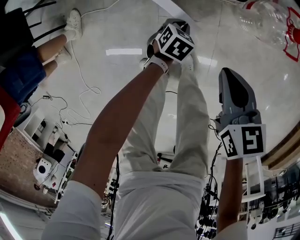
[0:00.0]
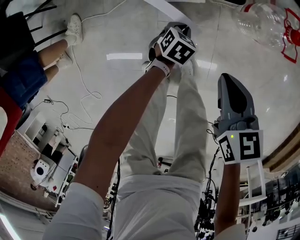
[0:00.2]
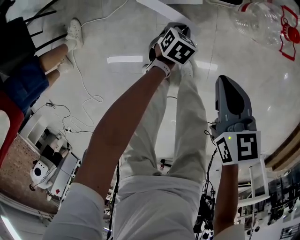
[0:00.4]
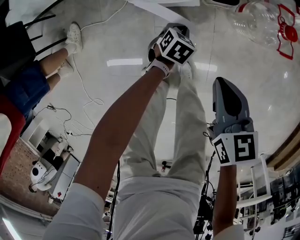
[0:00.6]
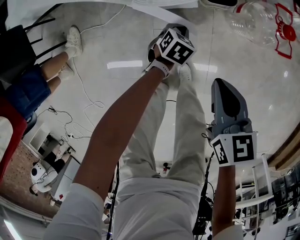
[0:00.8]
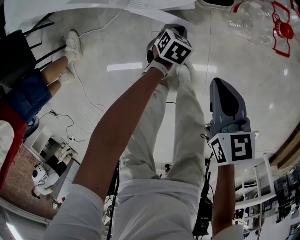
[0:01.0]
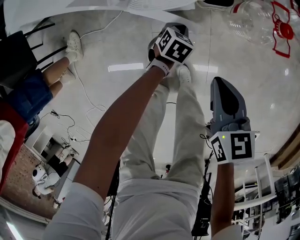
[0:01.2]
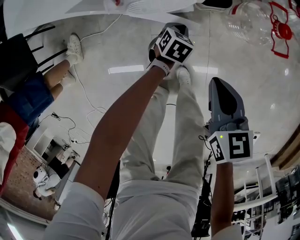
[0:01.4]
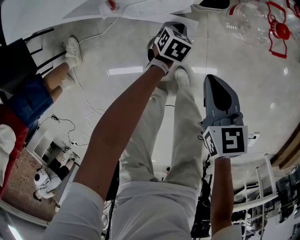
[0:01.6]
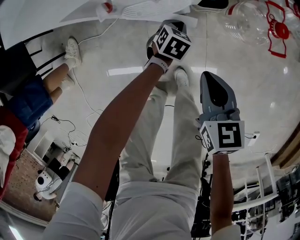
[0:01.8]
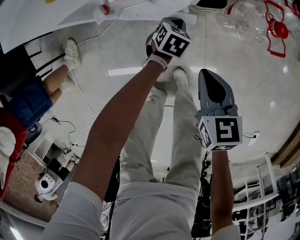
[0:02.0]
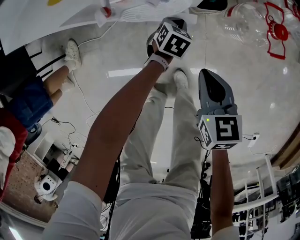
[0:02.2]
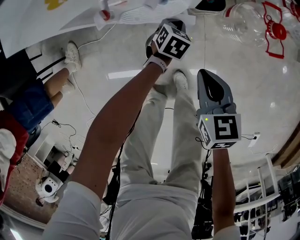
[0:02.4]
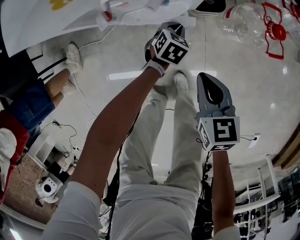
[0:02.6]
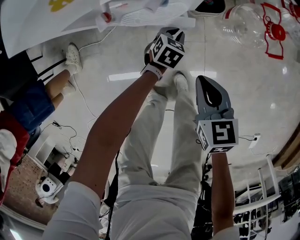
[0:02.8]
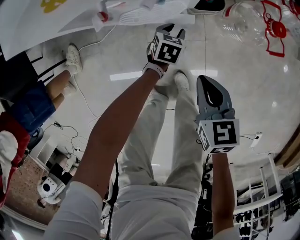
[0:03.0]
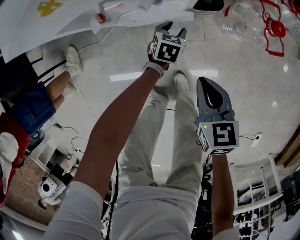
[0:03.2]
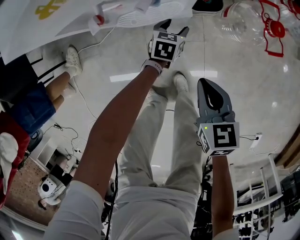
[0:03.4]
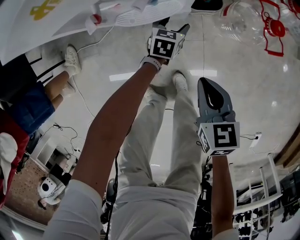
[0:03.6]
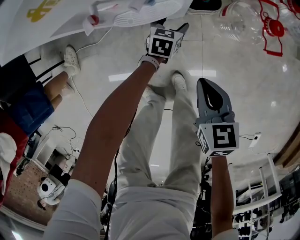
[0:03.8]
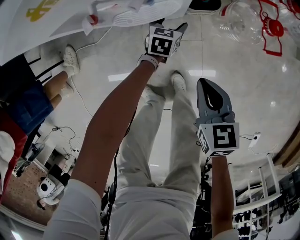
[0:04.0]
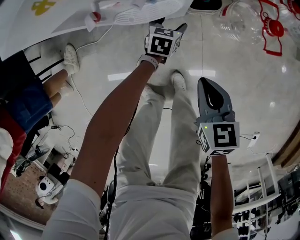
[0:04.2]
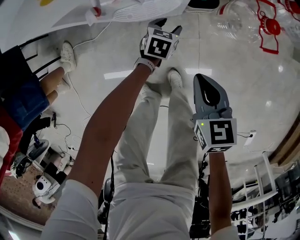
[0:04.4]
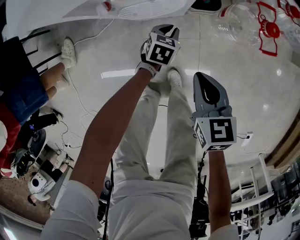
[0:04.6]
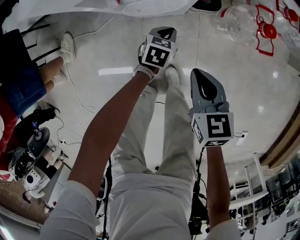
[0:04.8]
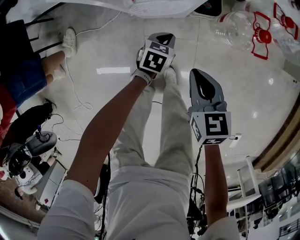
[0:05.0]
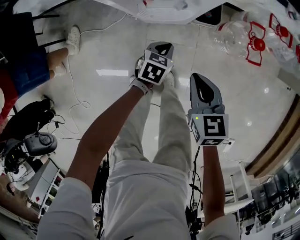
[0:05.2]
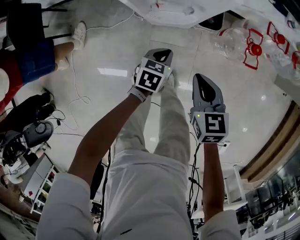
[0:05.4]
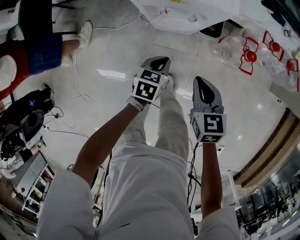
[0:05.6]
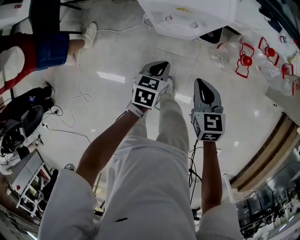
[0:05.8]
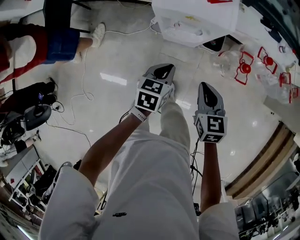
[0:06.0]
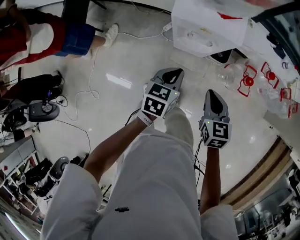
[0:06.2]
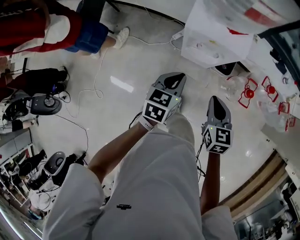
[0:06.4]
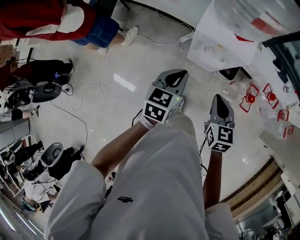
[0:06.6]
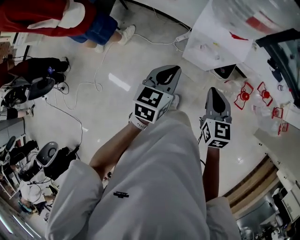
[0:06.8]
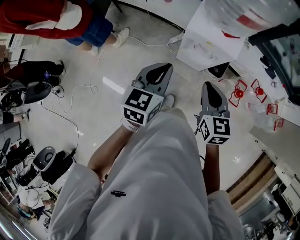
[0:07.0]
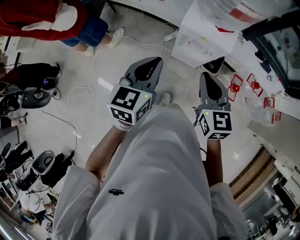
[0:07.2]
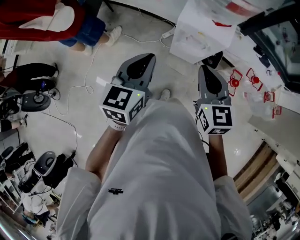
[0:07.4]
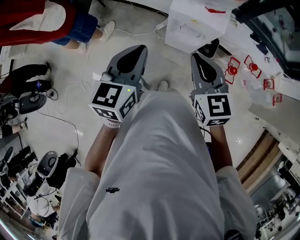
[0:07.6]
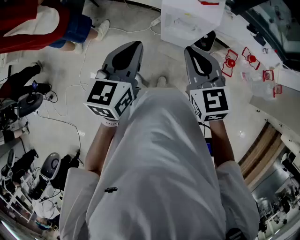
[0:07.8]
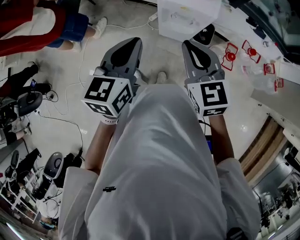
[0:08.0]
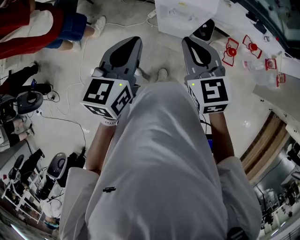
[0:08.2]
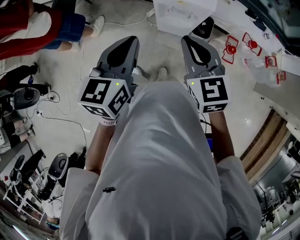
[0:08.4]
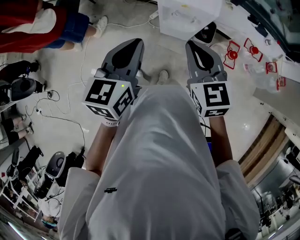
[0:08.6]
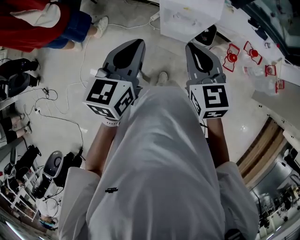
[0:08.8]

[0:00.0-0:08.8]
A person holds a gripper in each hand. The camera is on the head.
0:00.0 to 0:01.4: The left gripper shifts roughly 5 cm forward.
0:01.4 to 0:03.0: The left gripper opens its fingers.
0:03.0 to 0:04.4: There are only small adjustments of the grippers.
0:04.4 to 0:05.8: The left gripper heads upward and backward, covering roughly 35 cm, swivels roughly 20 degrees, and closes. Meanwhile the right gripper goes approximately 20 cm upward.
0:05.8 to 0:07.4: The two grippers go about 30 cm upward. The right gripper turns by roughly 30 degrees; the left gripper turns by approximately 30 degrees.
0:07.4 to 0:08.8: The grippers stay close to where they were, moving slightly.

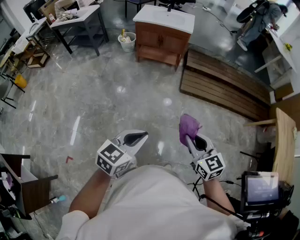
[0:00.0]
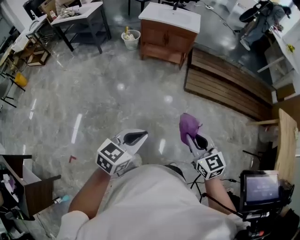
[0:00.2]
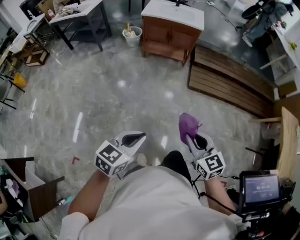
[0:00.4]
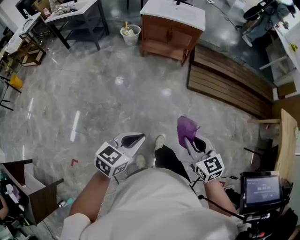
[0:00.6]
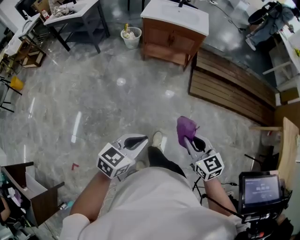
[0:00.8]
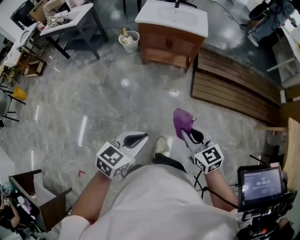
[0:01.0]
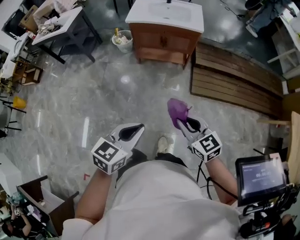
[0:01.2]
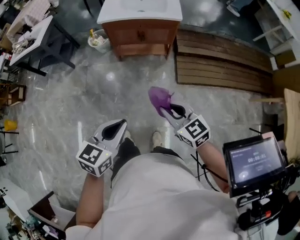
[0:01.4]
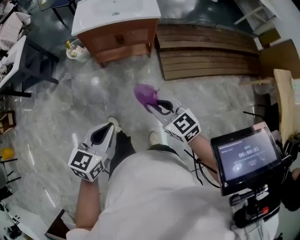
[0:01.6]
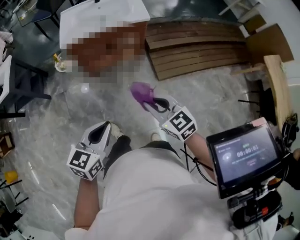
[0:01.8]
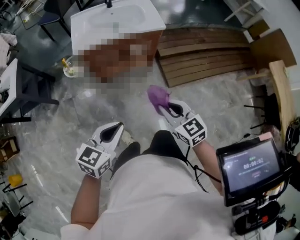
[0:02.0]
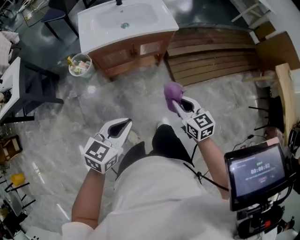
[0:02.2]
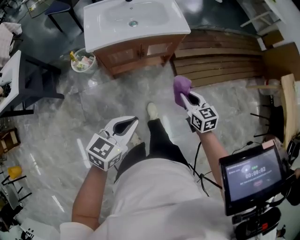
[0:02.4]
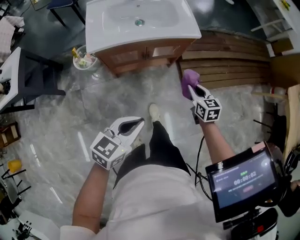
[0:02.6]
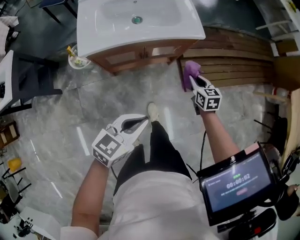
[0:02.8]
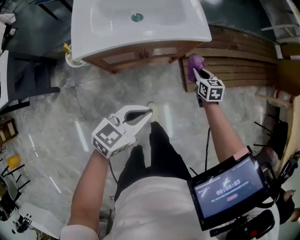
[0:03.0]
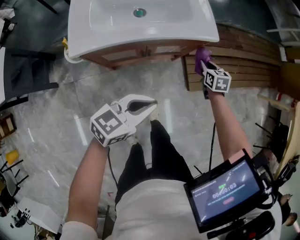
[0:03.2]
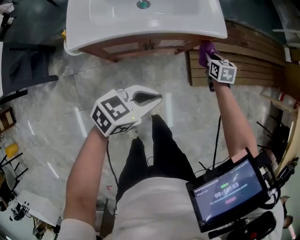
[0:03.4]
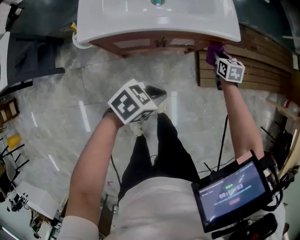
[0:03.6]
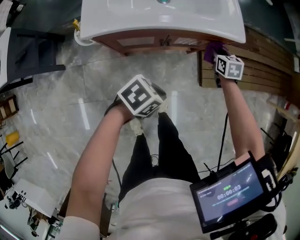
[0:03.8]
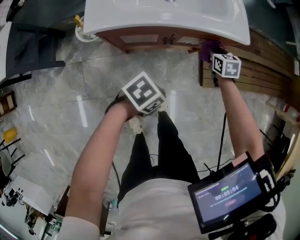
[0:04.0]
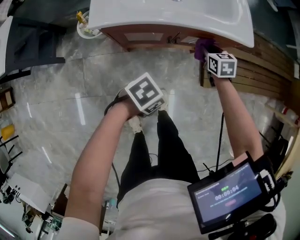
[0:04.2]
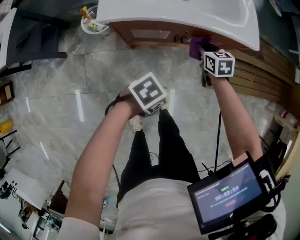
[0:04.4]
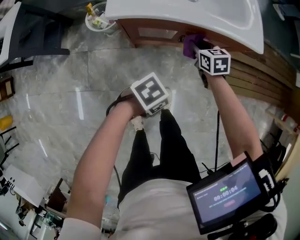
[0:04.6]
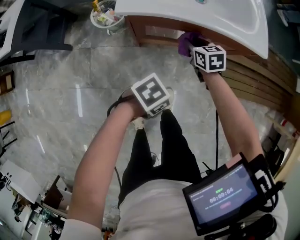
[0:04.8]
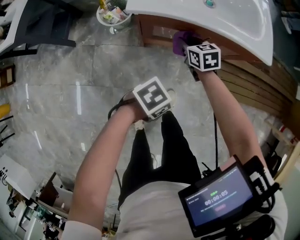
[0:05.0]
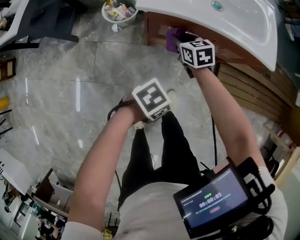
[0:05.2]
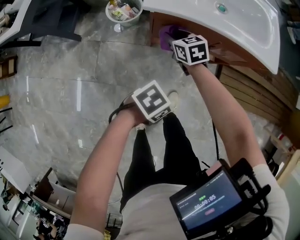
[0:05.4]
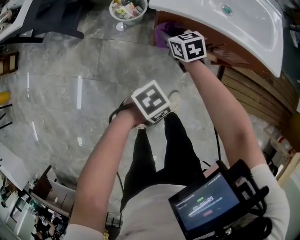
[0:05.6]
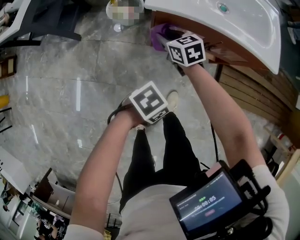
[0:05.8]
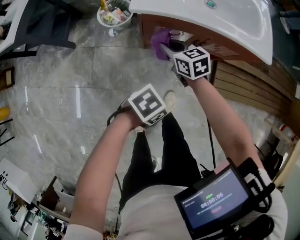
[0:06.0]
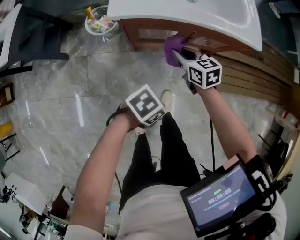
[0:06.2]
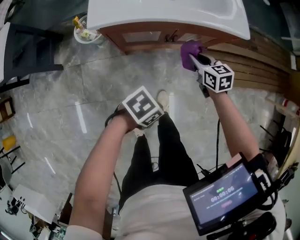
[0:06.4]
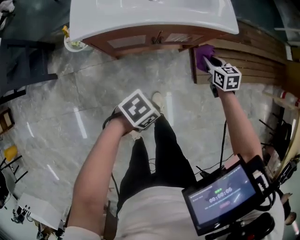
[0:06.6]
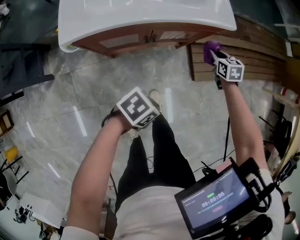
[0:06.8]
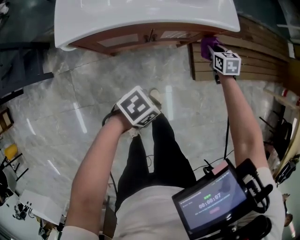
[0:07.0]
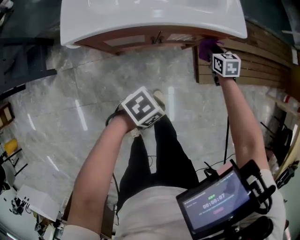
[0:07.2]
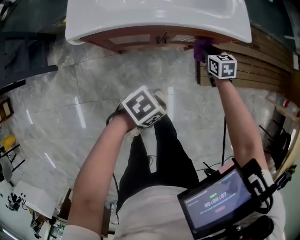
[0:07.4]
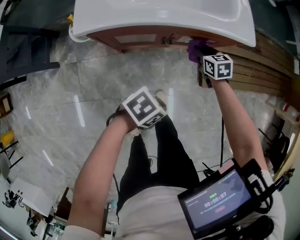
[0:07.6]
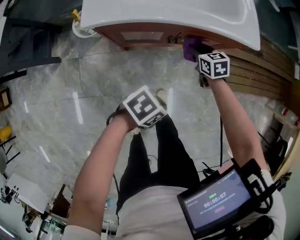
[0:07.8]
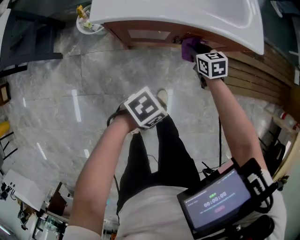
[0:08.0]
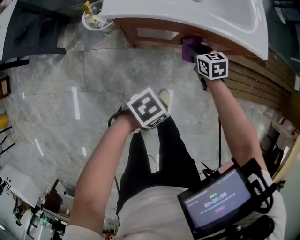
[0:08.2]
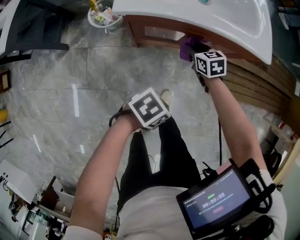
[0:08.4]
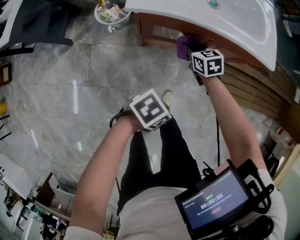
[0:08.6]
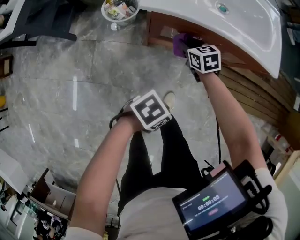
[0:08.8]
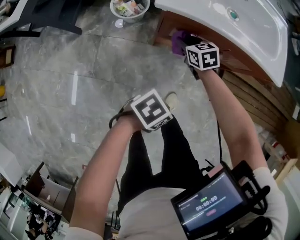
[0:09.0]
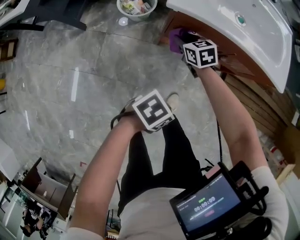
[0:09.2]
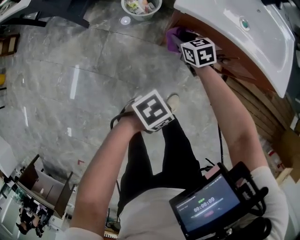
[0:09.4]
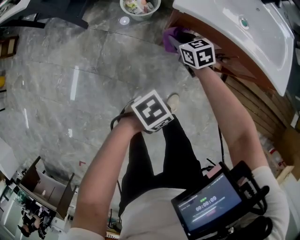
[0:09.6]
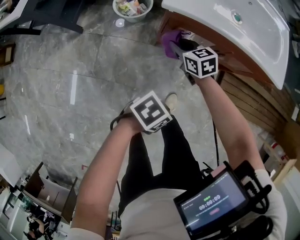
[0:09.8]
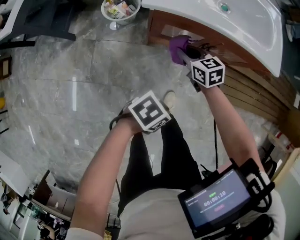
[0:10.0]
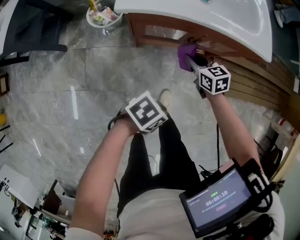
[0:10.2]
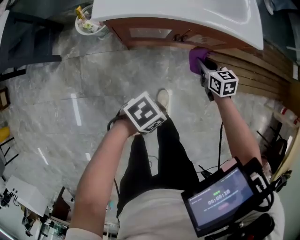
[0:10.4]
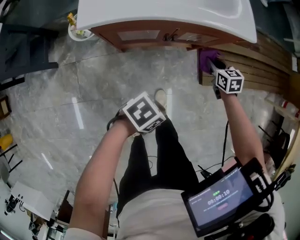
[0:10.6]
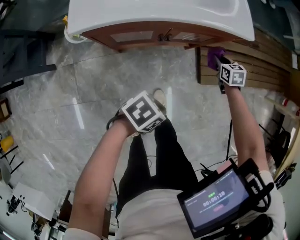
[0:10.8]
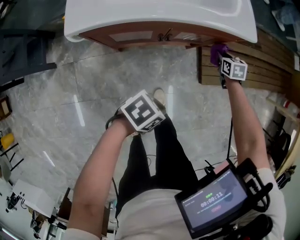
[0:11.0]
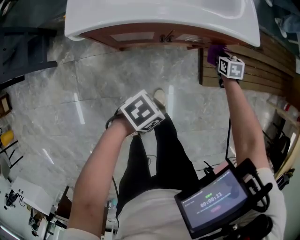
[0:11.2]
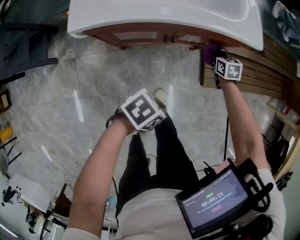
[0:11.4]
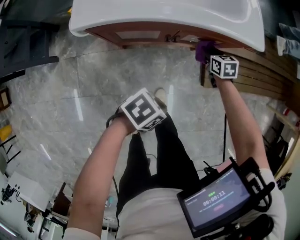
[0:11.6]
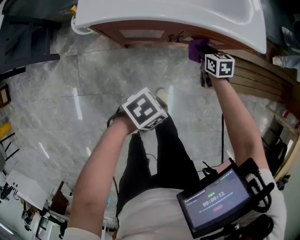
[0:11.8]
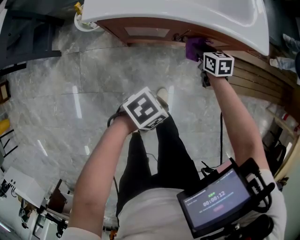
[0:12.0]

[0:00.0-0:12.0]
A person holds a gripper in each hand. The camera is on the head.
0:00.0 to 0:01.6: The pair of grippers is taken forward, about 50 cm.
0:01.6 to 0:03.0: Both grippers are carried approximately 50 cm. The right gripper turns by approximately 40 degrees. The left gripper rotates roughly 30 degrees.
0:03.0 to 0:04.4: The left gripper is displaced downward by about 20 cm, and swivels roughly 50 degrees; the right gripper moves about 20 cm.
0:04.4 to 0:06.0: The right gripper ends up approximately 30 cm from where it was, and rotates approximately 20 degrees. Meanwhile the left gripper changes place by roughly 10 cm.
0:06.0 to 0:07.6: The left gripper moves some 15 cm, while the right gripper changes place by approximately 35 cm, and rotates roughly 20 degrees.
0:07.6 to 0:09.0: The left gripper changes place by some 15 cm, while the right gripper ends up roughly 30 cm from where it was, and swivels roughly 20 degrees.
0:09.0 to 0:10.4: The left gripper moves about 10 cm; the right gripper ends up some 25 cm from where it was, and turns by about 20 degrees.

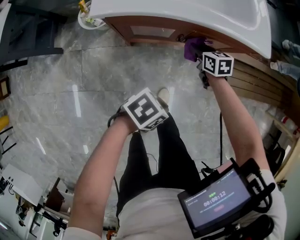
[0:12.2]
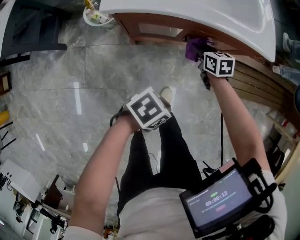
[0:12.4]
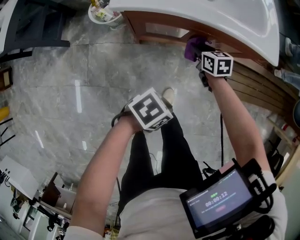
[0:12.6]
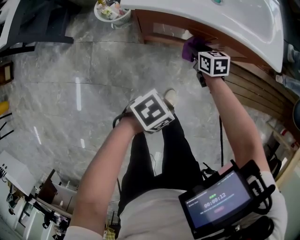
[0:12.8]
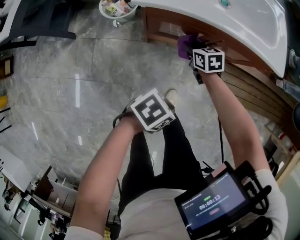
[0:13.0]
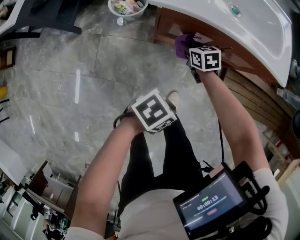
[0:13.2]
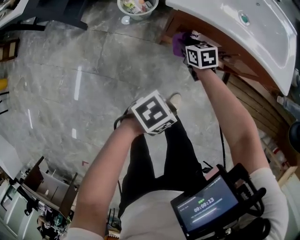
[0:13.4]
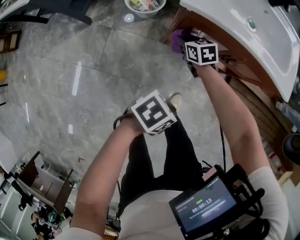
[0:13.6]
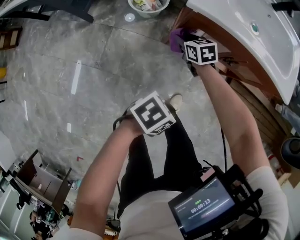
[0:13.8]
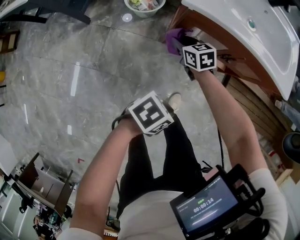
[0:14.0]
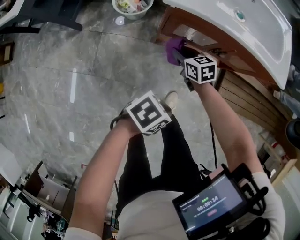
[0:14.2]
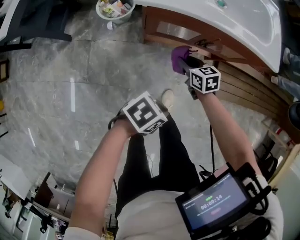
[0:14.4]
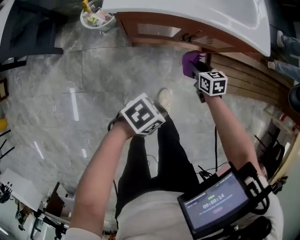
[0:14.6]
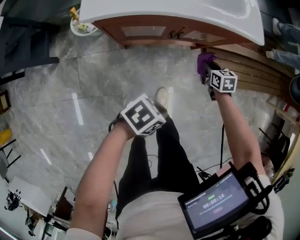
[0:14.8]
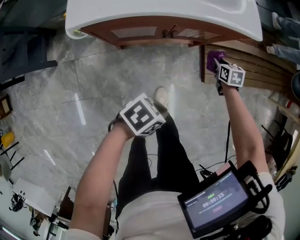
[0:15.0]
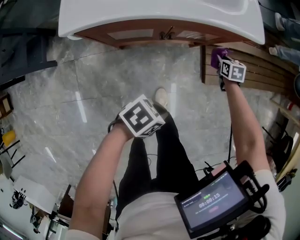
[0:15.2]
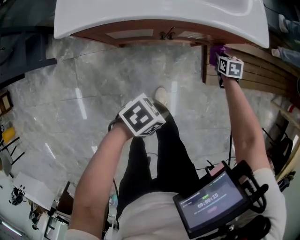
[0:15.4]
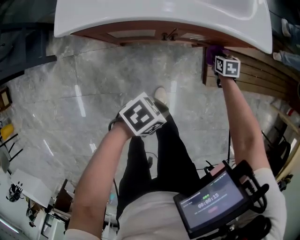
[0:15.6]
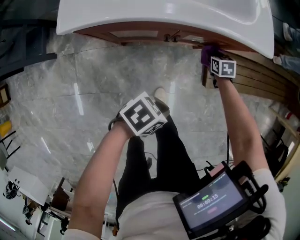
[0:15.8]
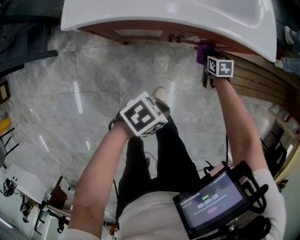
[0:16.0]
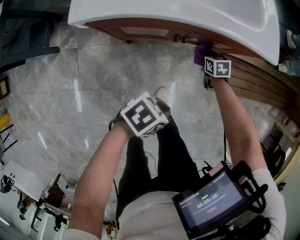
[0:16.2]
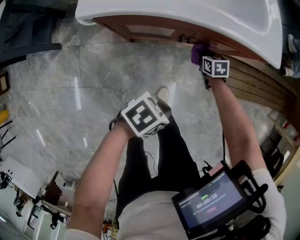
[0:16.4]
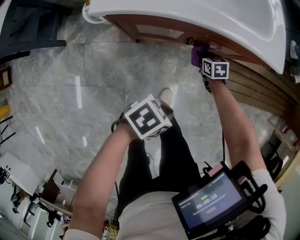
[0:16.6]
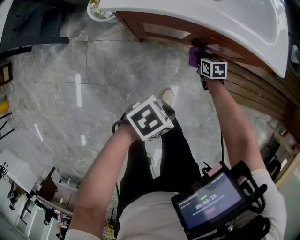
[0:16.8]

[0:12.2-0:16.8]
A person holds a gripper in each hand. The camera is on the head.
0:12.2 to 0:13.8: The left gripper changes place by roughly 15 cm. Meanwhile the right gripper shifts by some 35 cm, and turns by about 30 degrees.
0:13.8 to 0:15.2: The left gripper changes place by some 20 cm, and changes its angle by roughly 20 degrees. Meanwhile the right gripper shifts by about 60 cm, and turns by roughly 50 degrees.
0:15.2 to 0:16.8: The left gripper moves about 5 cm. Meanwhile the right gripper moves about 25 cm, and rotates some 20 degrees.
